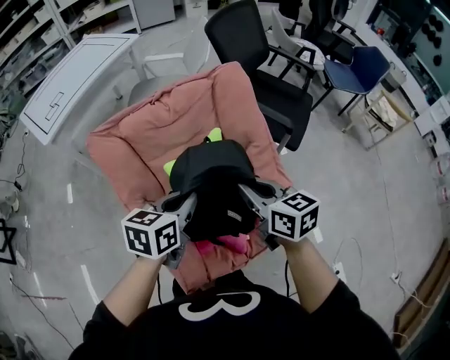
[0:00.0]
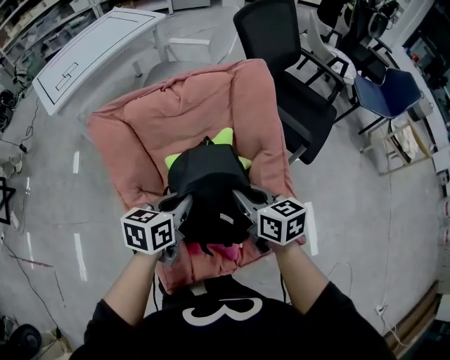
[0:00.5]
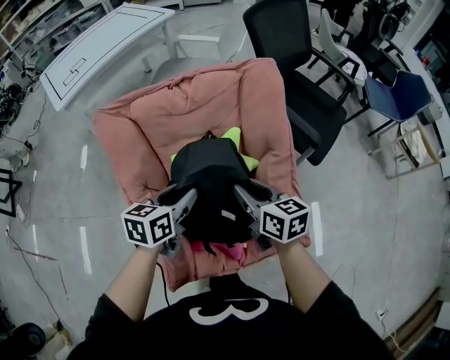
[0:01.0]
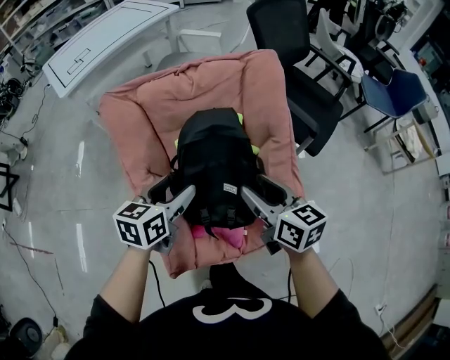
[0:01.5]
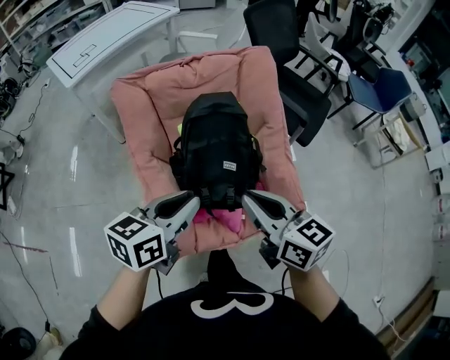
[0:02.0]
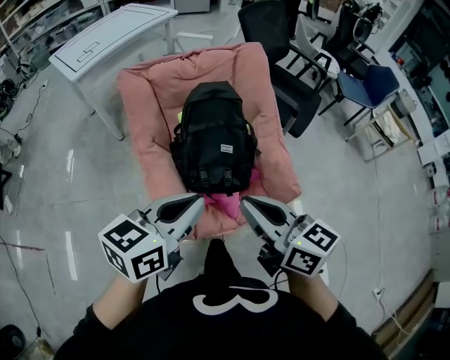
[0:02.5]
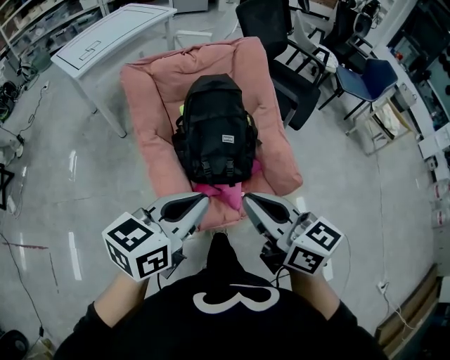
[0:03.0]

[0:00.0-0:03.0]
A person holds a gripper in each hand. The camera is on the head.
0:00.0 to 0:01.5: The right gripper opens. Meanwhile the left gripper moves downward, about 5 cm, and opens.
0:01.5 to 0:03.0: Both grippers travel together backward and upward, approximately 35 cm. The left gripper changes its angle by roughly 20 degrees, and closes up. The right gripper closes up.

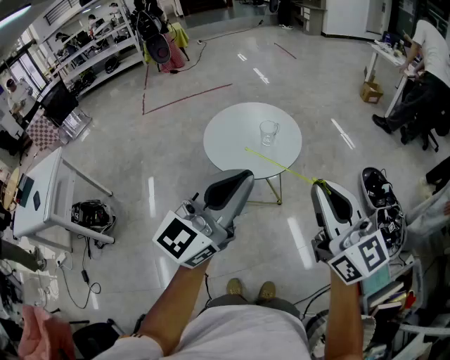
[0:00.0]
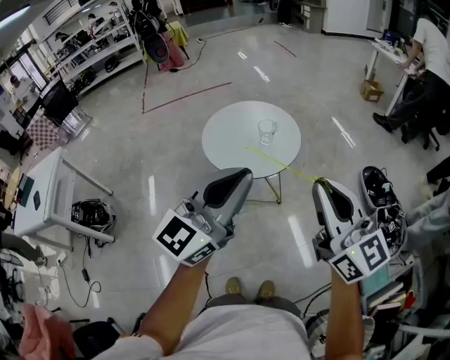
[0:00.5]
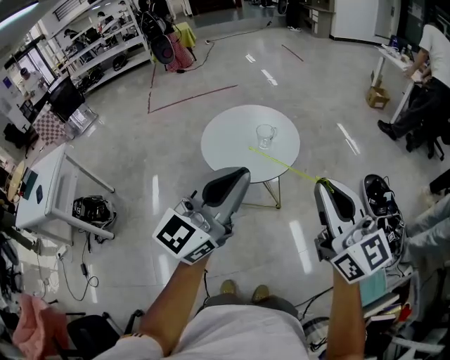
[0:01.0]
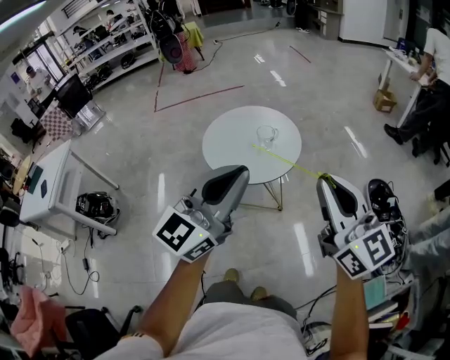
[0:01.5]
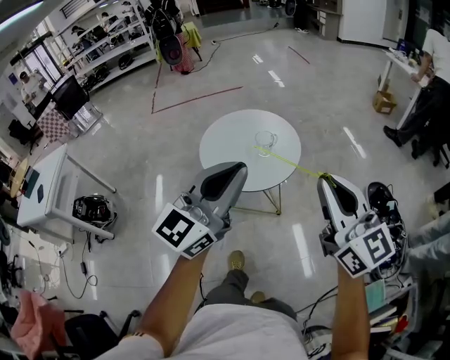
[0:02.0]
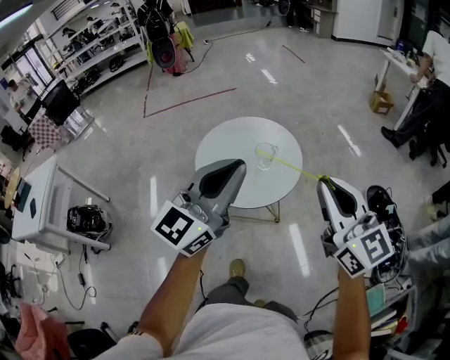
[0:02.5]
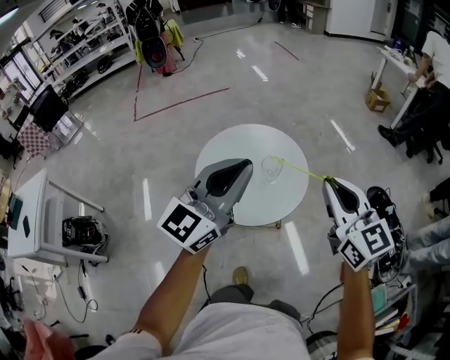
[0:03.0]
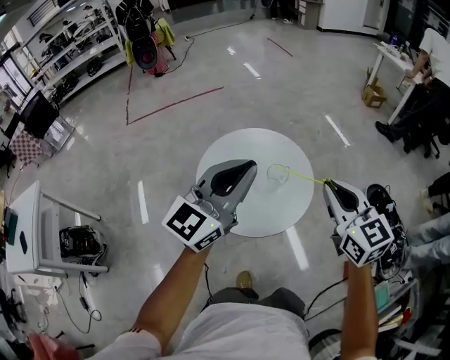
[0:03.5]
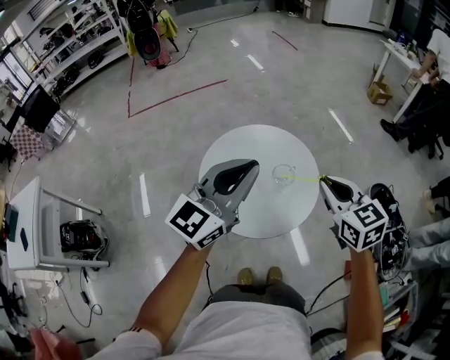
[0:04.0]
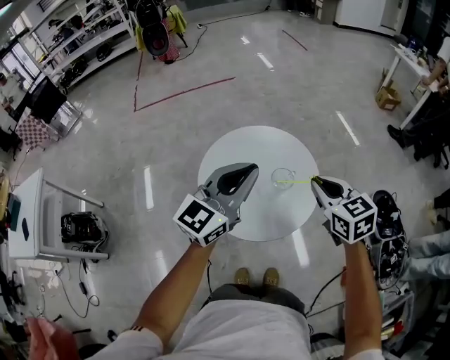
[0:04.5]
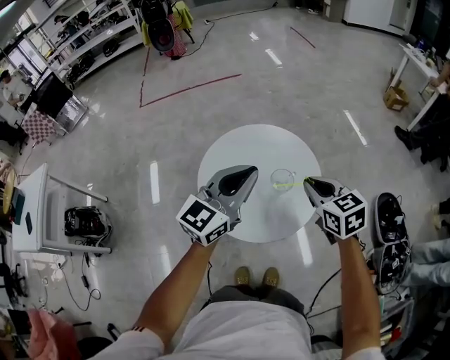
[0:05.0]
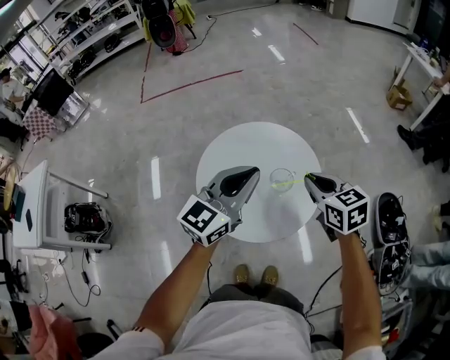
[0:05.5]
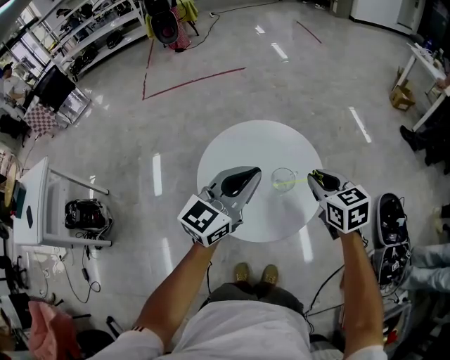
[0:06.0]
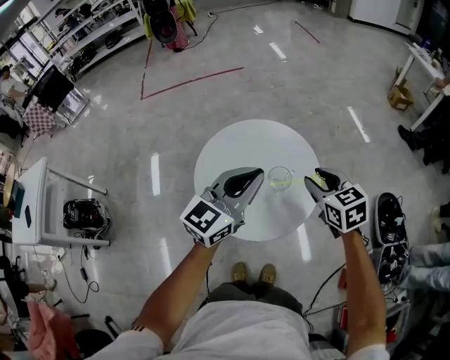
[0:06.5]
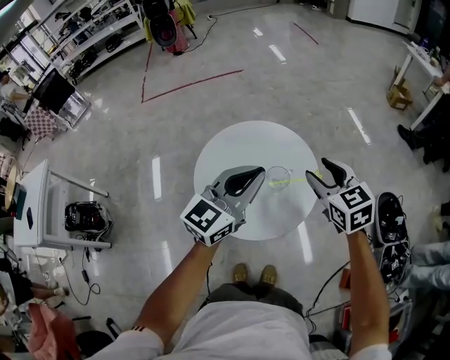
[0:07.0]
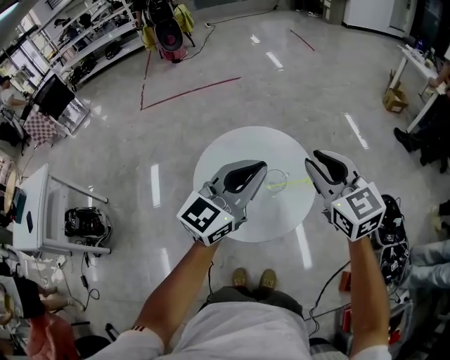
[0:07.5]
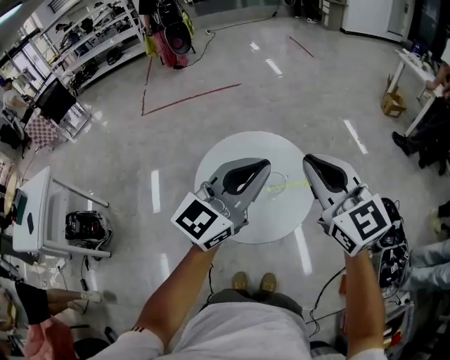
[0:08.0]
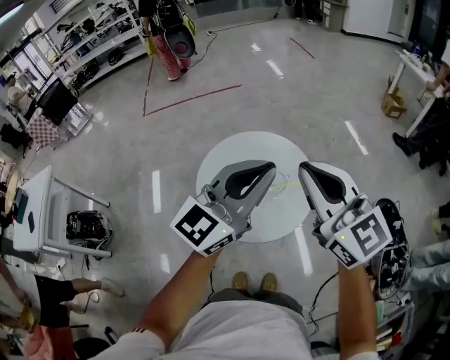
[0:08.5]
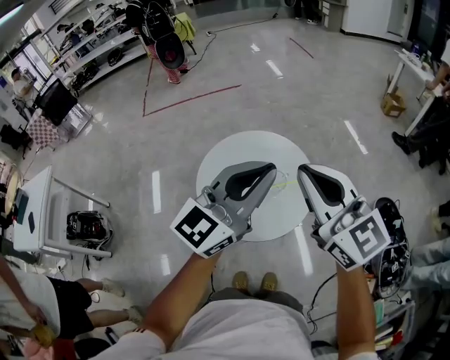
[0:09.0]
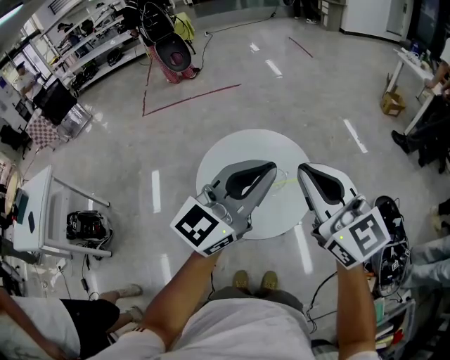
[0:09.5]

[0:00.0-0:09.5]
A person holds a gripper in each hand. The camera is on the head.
0:00.0 to 0:02.0: The right gripper heads forward and to the right, covering about 10 cm. The left gripper goes roughly 10 cm forward.
0:02.0 to 0:04.0: The left gripper travels forward and to the left by some 25 cm; the right gripper shifts roughly 30 cm forward and downward, and angles its fingers downward, by approximately 30 degrees.
0:04.0 to 0:05.5: The left gripper is displaced downward by approximately 10 cm, while the right gripper is displaced downward and forward by some 10 cm.
0:05.5 to 0:07.5: The left gripper moves upward, roughly 5 cm, while the right gripper shifts some 15 cm upward, and rotates approximately 20 degrees.
0:07.5 to 0:09.5: The left gripper shifts roughly 10 cm upward and backward, while the right gripper shifts approximately 15 cm backward and upward, and closes its fingers.

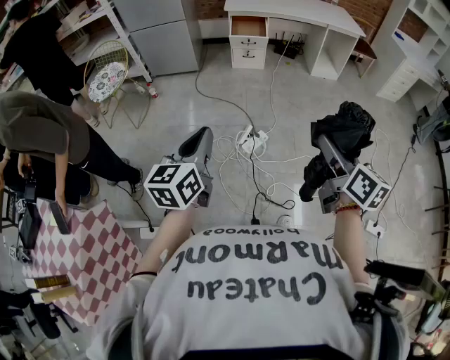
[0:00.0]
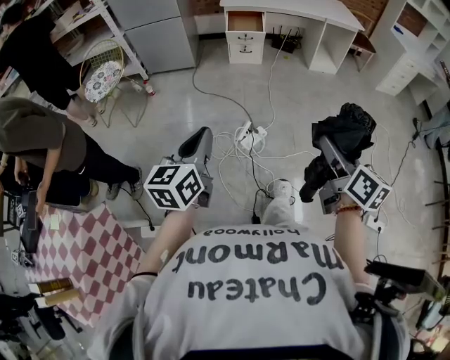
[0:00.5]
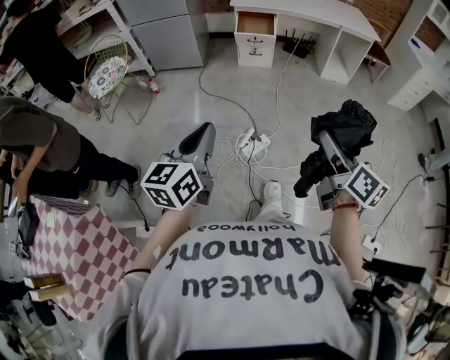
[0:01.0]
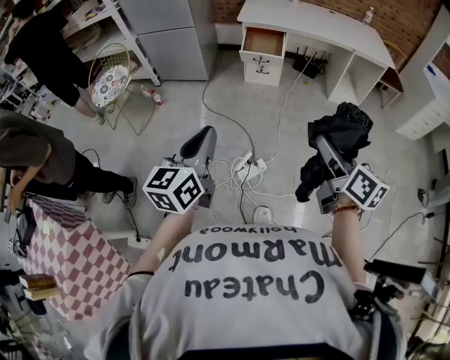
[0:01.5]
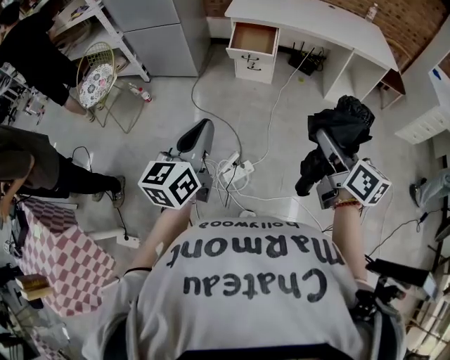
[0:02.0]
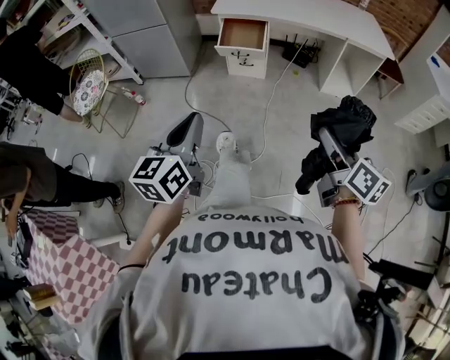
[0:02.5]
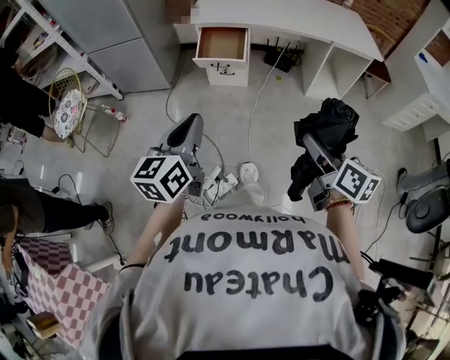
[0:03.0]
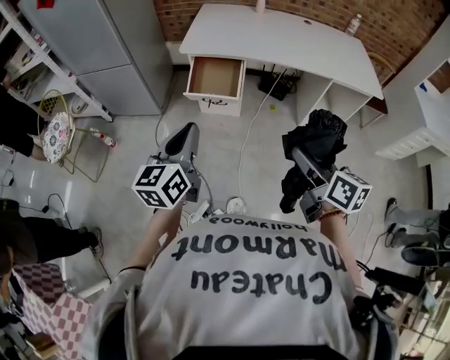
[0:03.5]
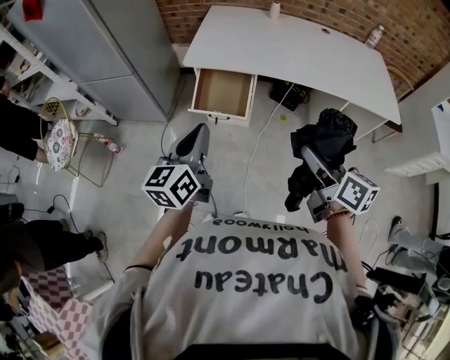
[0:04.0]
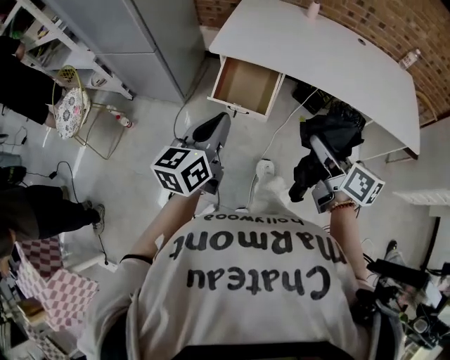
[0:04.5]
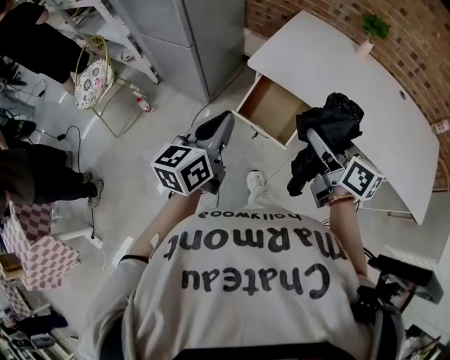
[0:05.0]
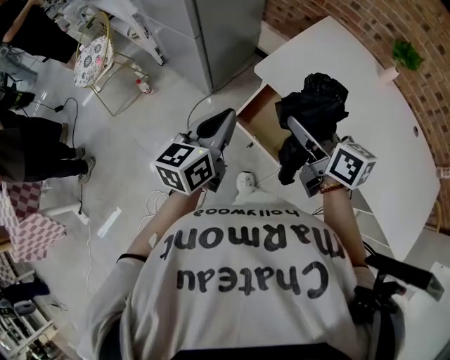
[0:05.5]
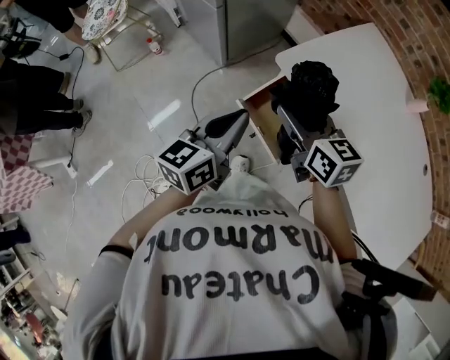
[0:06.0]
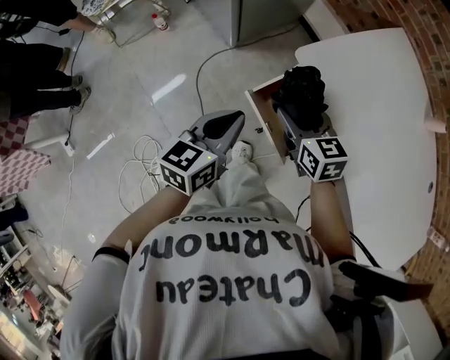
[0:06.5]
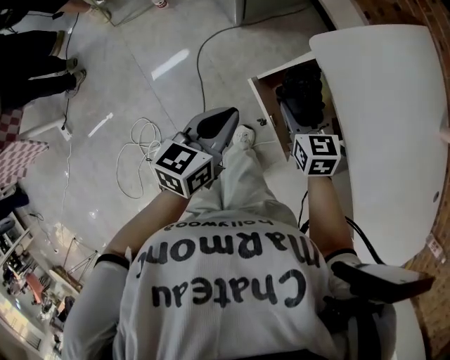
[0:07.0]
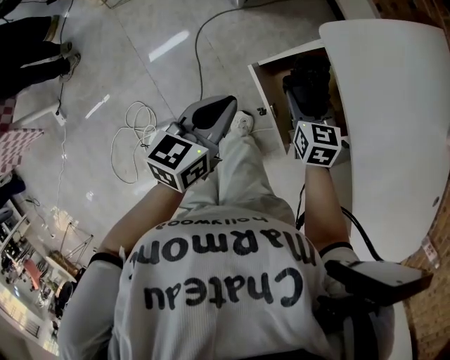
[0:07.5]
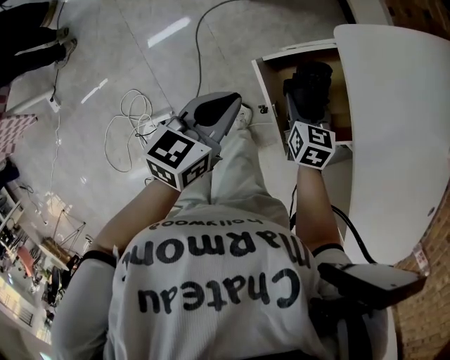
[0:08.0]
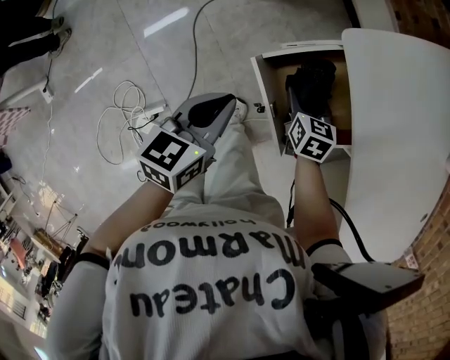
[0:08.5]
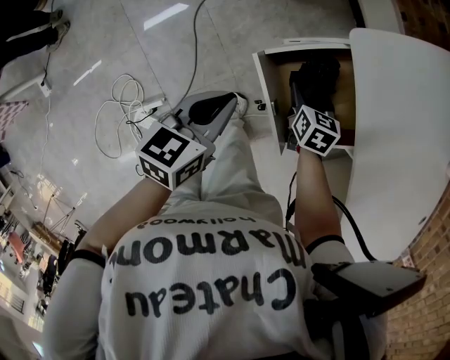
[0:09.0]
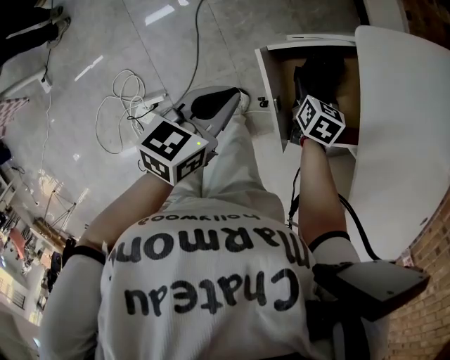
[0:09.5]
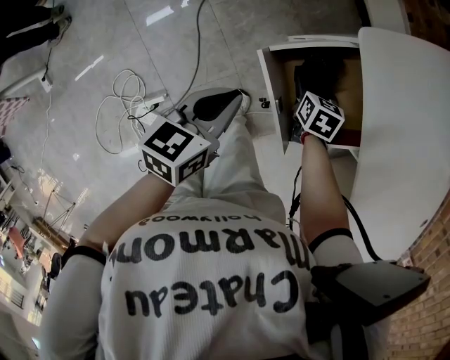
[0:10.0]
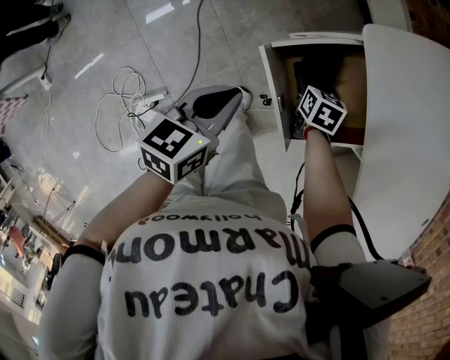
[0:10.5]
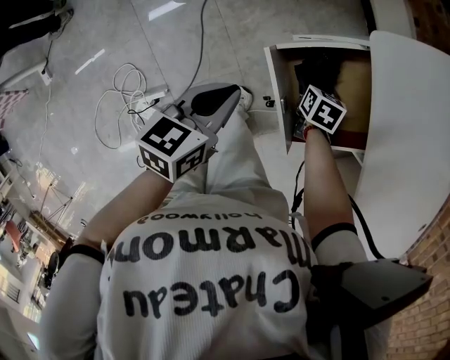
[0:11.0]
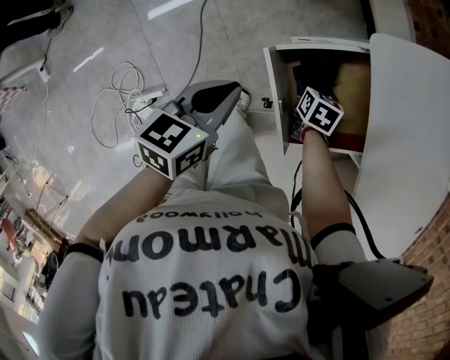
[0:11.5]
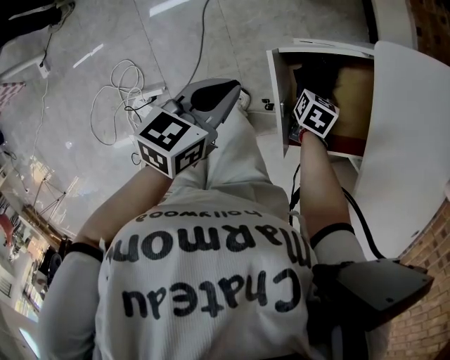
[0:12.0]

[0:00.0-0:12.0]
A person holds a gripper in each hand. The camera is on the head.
0:00.0 to 0:02.0: Both grippers move forward and to the right, some 40 cm.
0:02.0 to 0:04.0: Both grippers are carried forward, about 50 cm.
0:04.0 to 0:06.0: The left gripper shifts by about 25 cm, and changes its angle by approximately 30 degrees, while the right gripper changes place by some 50 cm, and swivels about 50 degrees.
0:06.0 to 0:08.0: The right gripper heads downward, covering some 30 cm, and changes its angle by roughly 30 degrees. Meanwhile the left gripper is displaced downward by roughly 20 cm, and turns by roughly 20 degrees.
0:08.0 to 0:10.0: The right gripper heads downward, covering some 10 cm.
0:10.0 to 0:12.0: The grippers make only small movements.

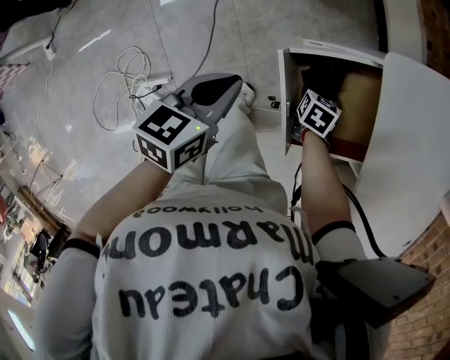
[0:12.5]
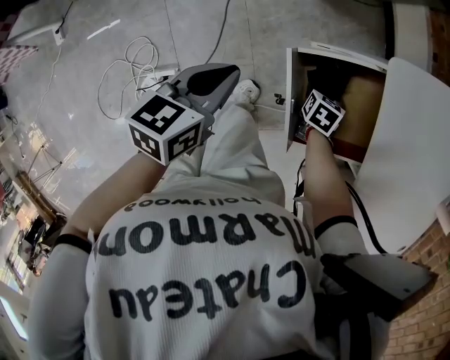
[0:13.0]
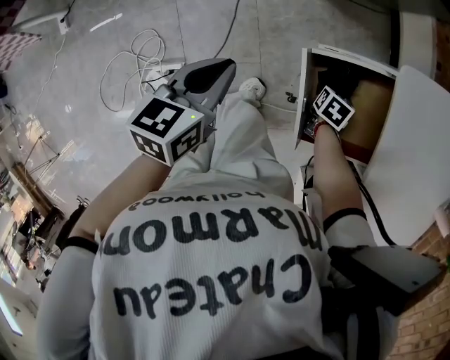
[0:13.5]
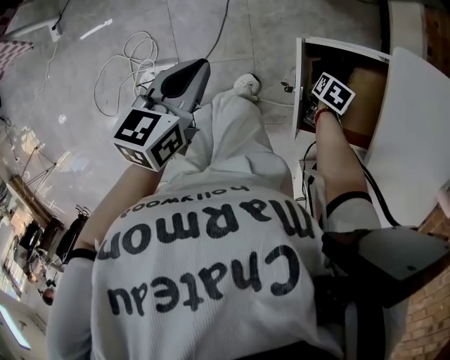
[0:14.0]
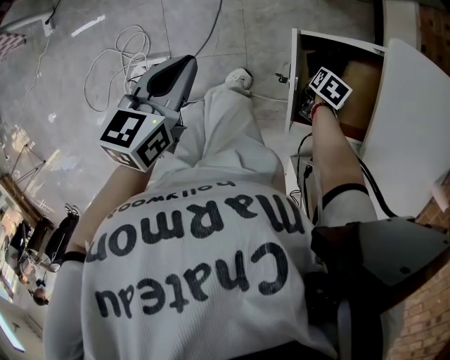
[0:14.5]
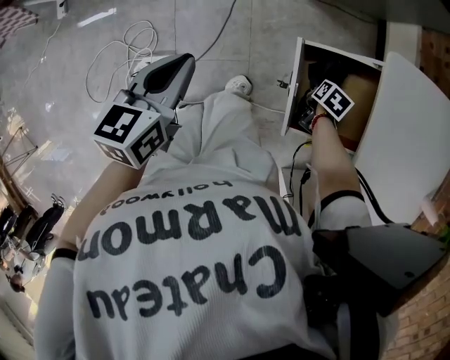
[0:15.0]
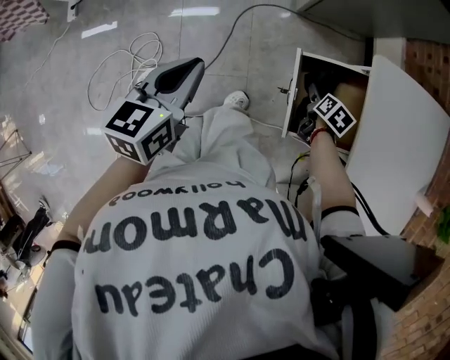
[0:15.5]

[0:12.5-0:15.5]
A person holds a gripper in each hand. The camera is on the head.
0:12.5 to 0:14.0: The left gripper moves to the left and backward, approximately 10 cm.
0:14.0 to 0:15.5: The left gripper is displaced backward and upward by roughly 10 cm; the right gripper shifts roughly 10 cm upward.
